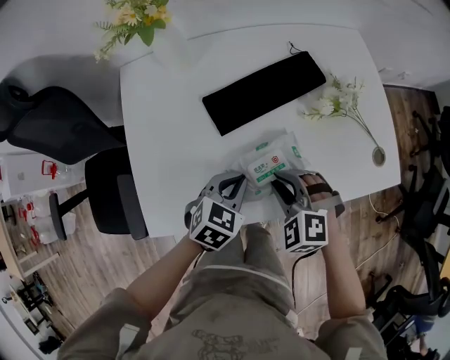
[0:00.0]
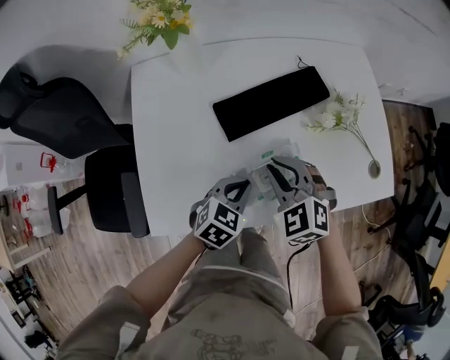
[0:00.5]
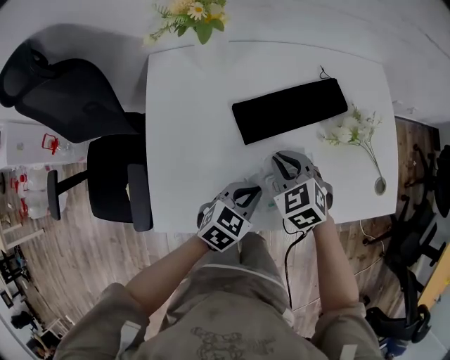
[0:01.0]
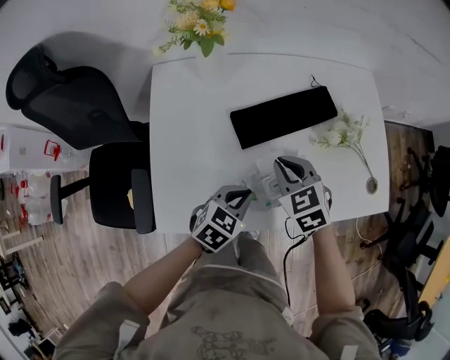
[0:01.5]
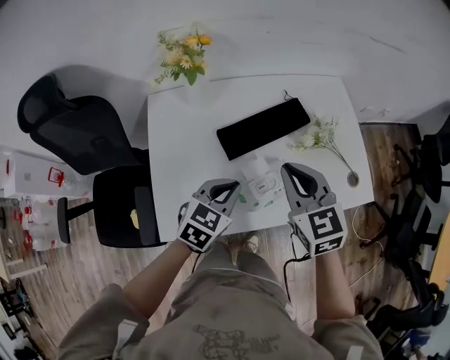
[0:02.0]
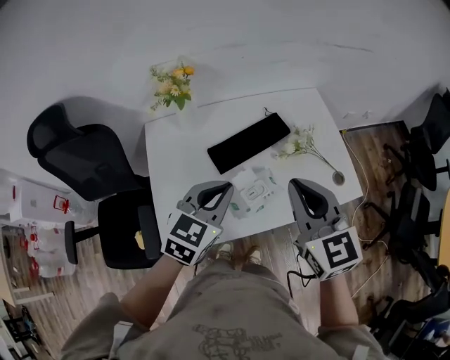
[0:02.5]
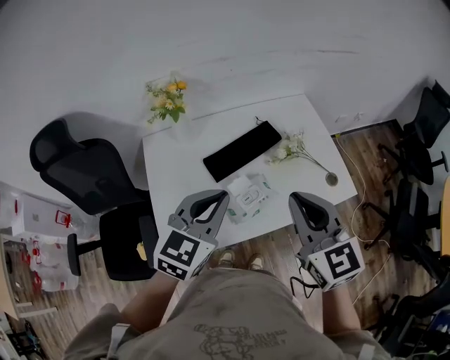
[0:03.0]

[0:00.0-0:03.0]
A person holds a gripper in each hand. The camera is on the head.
0:00.0 to 0:01.5: The right gripper goes about 10 cm forward, upward and to the left, and rotates approximately 30 degrees.
0:01.5 to 0:03.0: The right gripper heads upward and backward, covering some 30 cm, and points its fingers about 30 degrees further upward. Meanwhile the left gripper shifts approximately 30 cm upward, and turns by about 30 degrees.

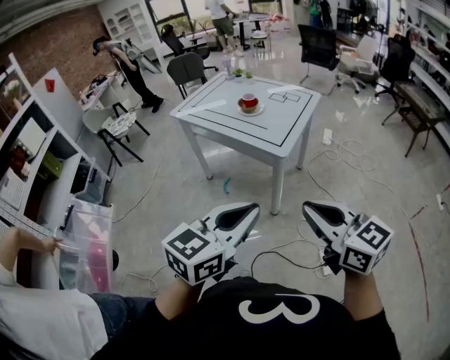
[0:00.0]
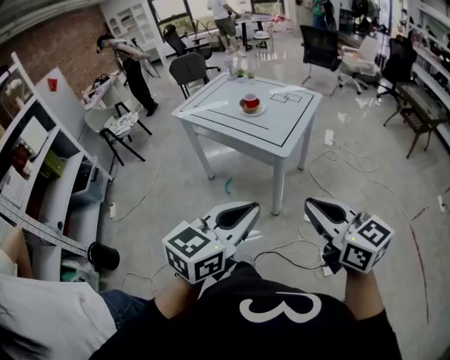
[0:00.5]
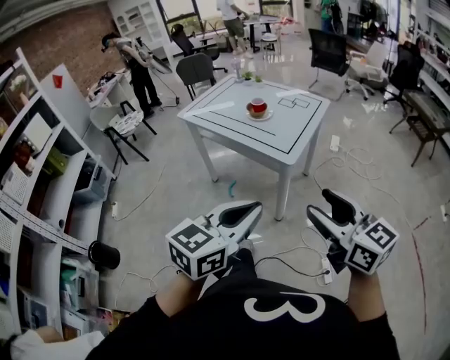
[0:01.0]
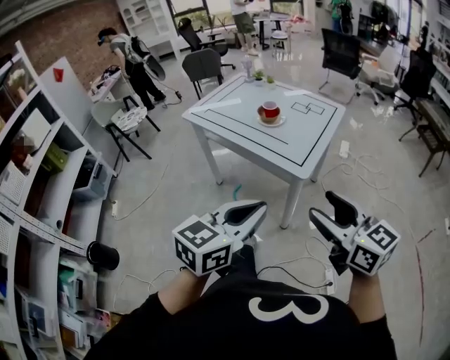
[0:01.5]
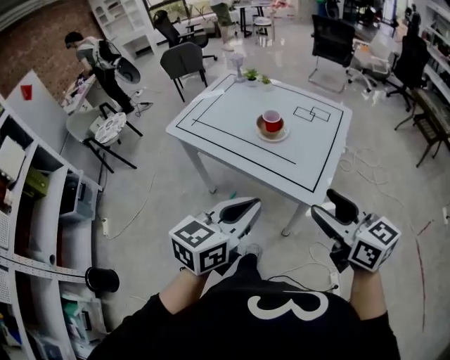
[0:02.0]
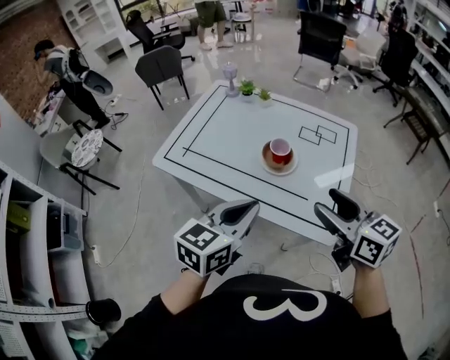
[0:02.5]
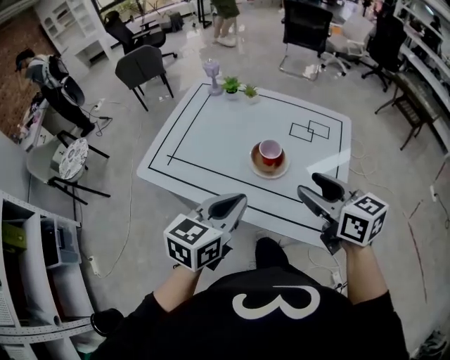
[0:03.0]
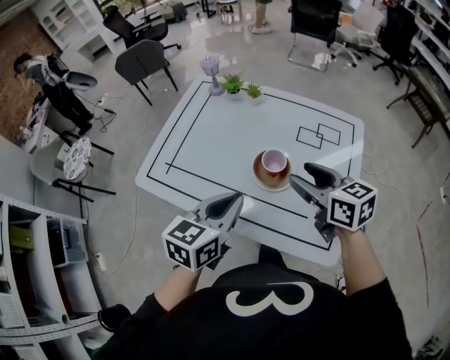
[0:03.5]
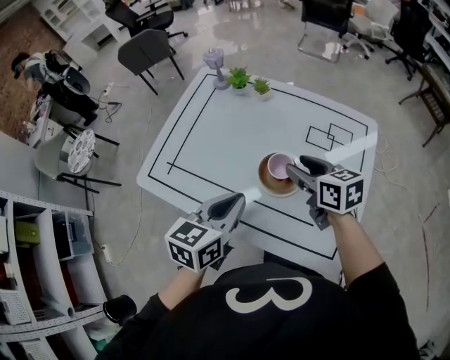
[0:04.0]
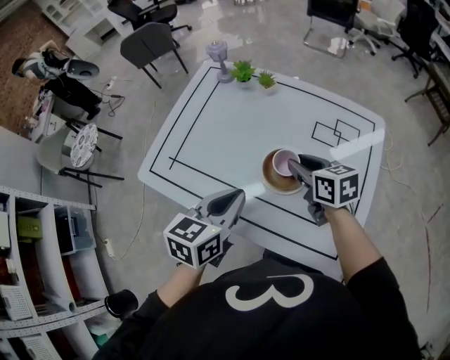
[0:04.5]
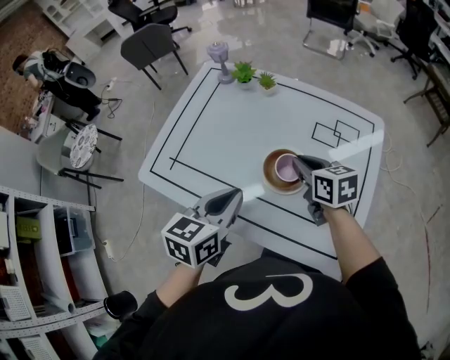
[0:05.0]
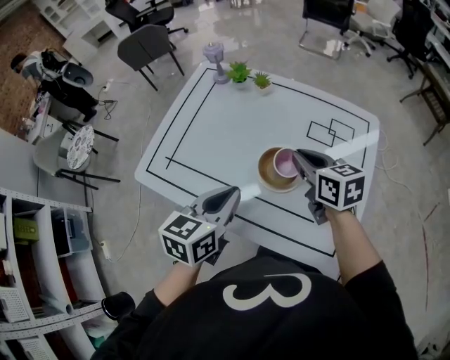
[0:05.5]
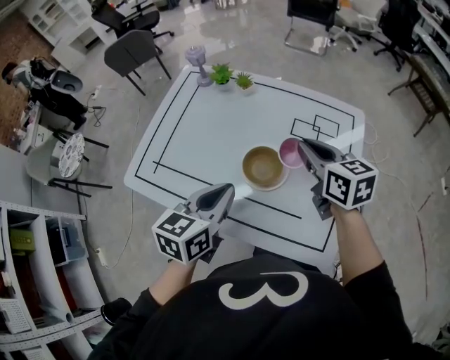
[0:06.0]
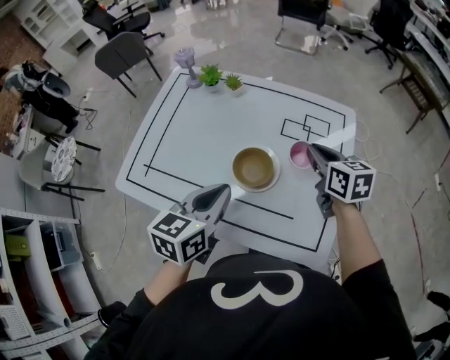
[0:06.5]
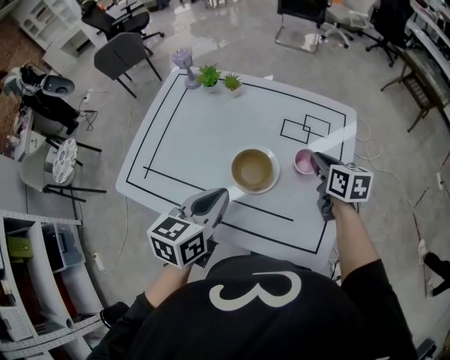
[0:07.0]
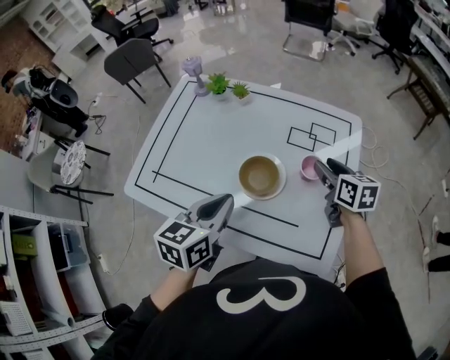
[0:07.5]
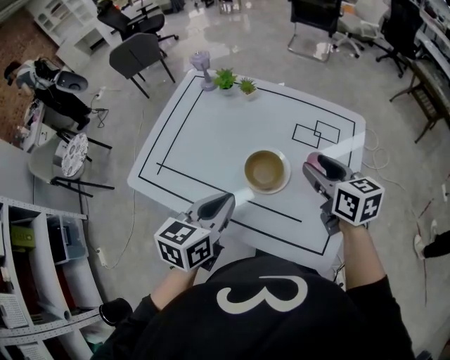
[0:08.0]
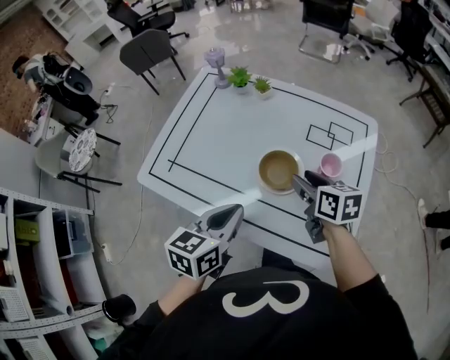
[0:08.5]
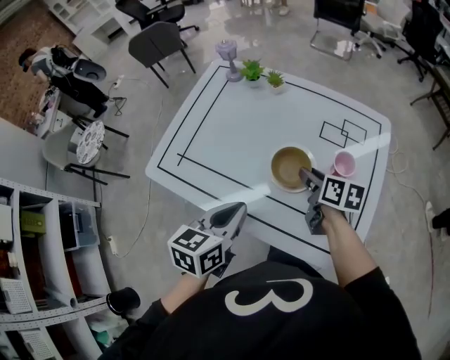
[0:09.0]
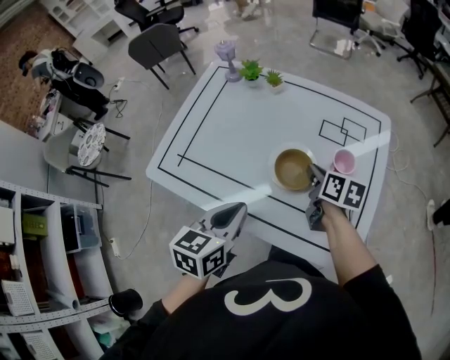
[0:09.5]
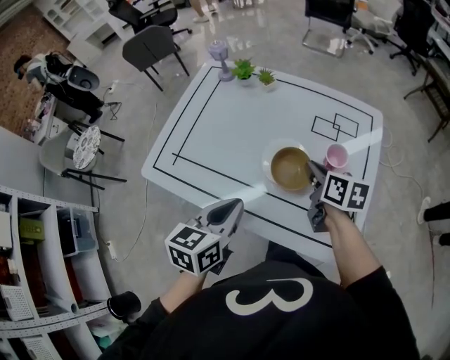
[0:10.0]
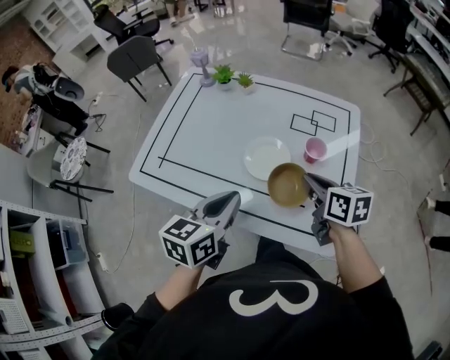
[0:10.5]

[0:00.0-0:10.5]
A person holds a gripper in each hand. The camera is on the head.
0:00.0 to 0:02.0: Both grippers travel together forward, approximately 30 cm. The right gripper opens its fingers.
0:02.0 to 0:04.0: The grippers both shift forward by roughly 35 cm. The right gripper changes its angle by some 20 degrees.
0:04.0 to 0:06.5: The right gripper travels to the right by approximately 10 cm, and closes.
0:06.5 to 0:08.5: The right gripper moves to the left and backward, approximately 10 cm, and opens up, while the left gripper moves roughly 5 cm.
0:08.5 to 0:10.5: The right gripper shifts approximately 5 cm backward, and closes its fingers.

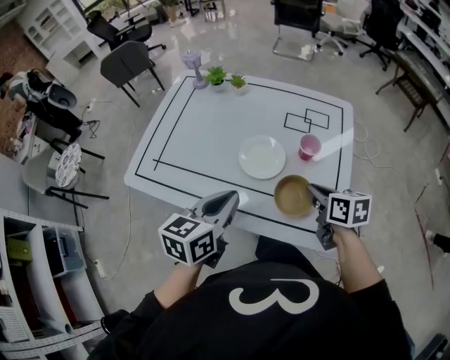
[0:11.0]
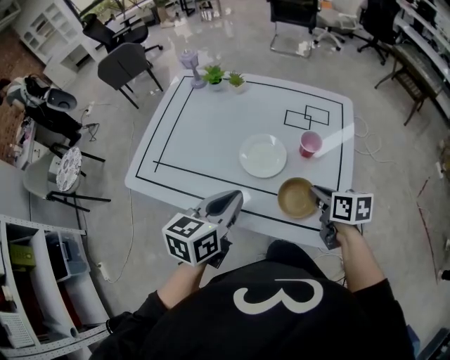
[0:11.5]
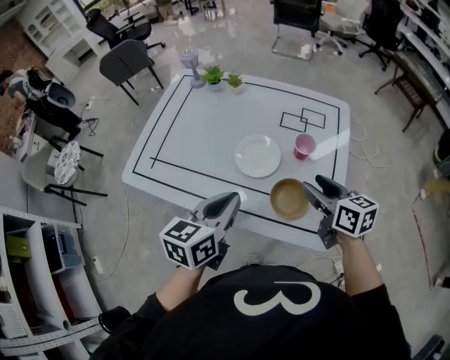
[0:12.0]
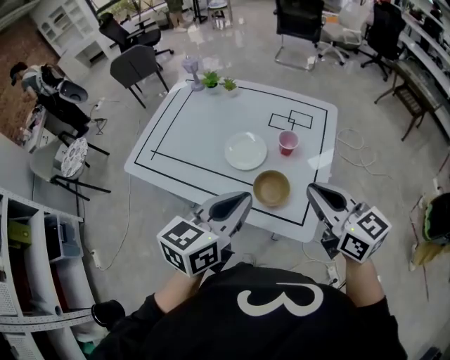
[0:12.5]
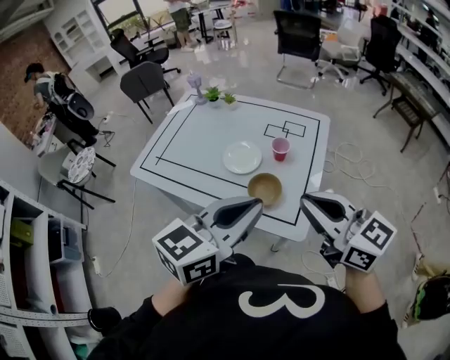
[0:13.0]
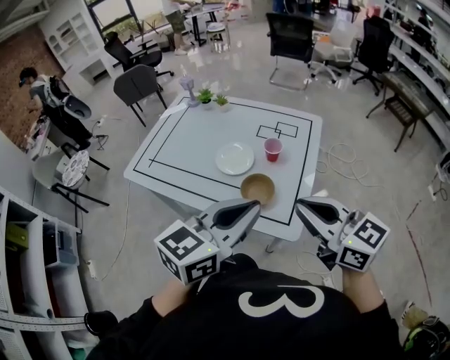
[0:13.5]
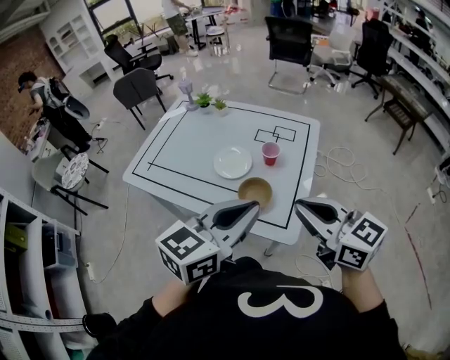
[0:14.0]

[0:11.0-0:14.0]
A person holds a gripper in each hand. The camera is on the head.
0:11.0 to 0:12.5: The right gripper travels upward and backward by some 20 cm, turns by approximately 40 degrees, and opens, then closes once more. The left gripper travels to the right, upward and backward by approximately 15 cm.
0:12.5 to 0:14.0: The left gripper moves to the right and backward, roughly 10 cm. The right gripper heads backward, covering about 5 cm.

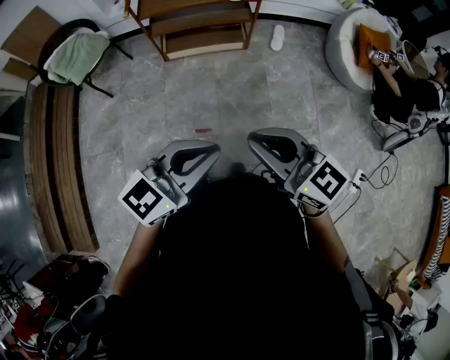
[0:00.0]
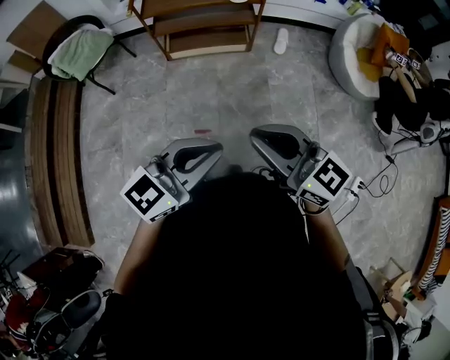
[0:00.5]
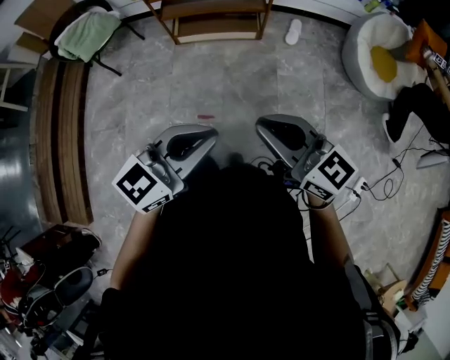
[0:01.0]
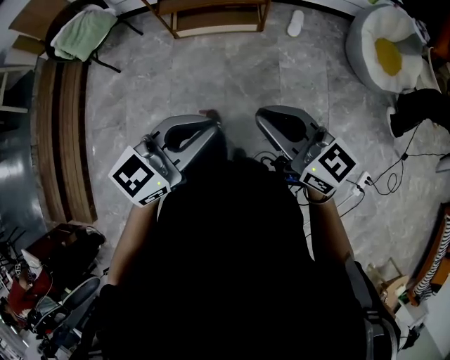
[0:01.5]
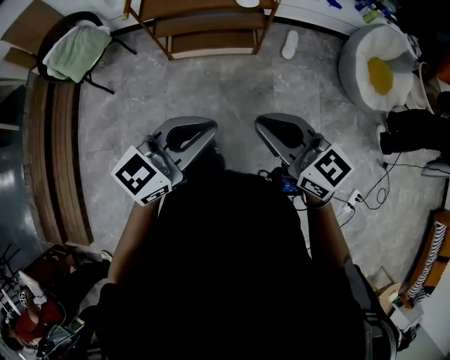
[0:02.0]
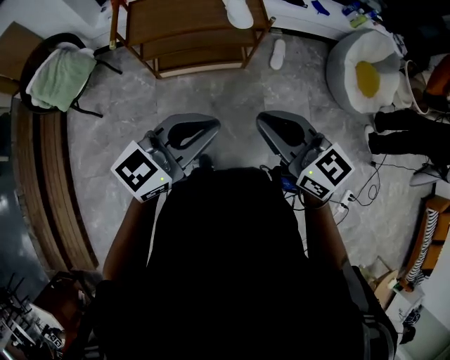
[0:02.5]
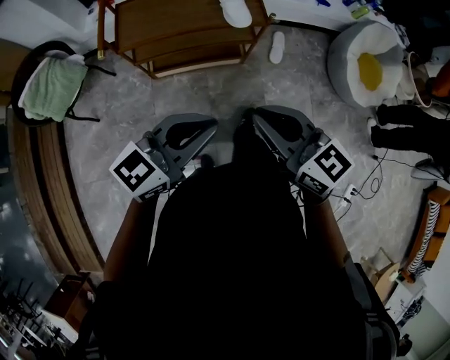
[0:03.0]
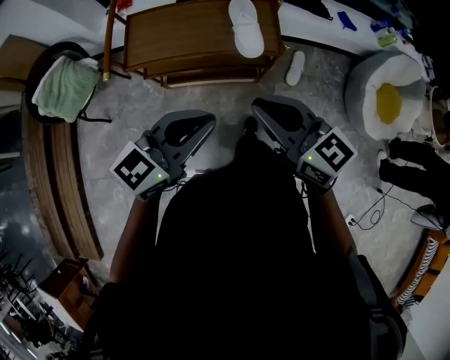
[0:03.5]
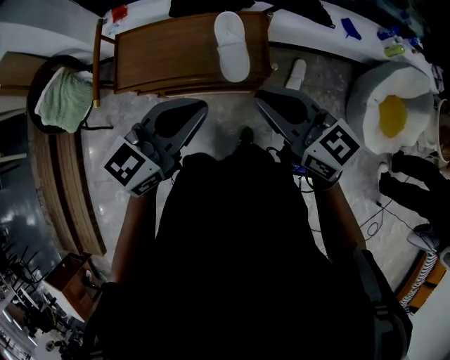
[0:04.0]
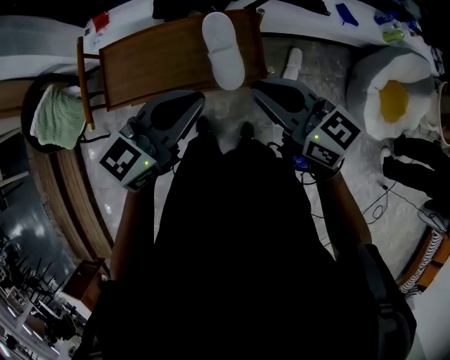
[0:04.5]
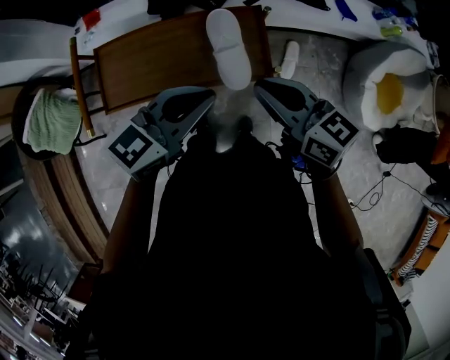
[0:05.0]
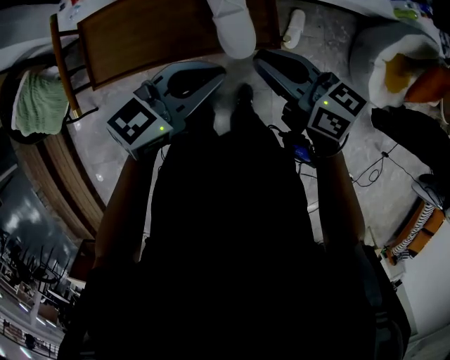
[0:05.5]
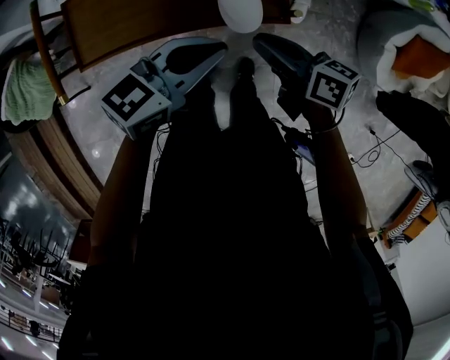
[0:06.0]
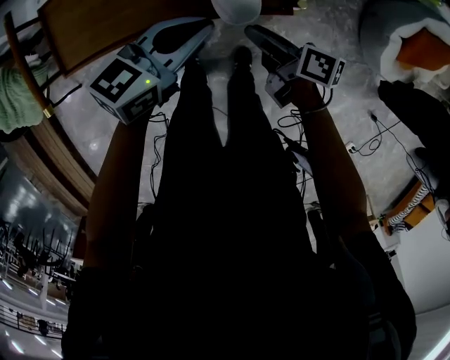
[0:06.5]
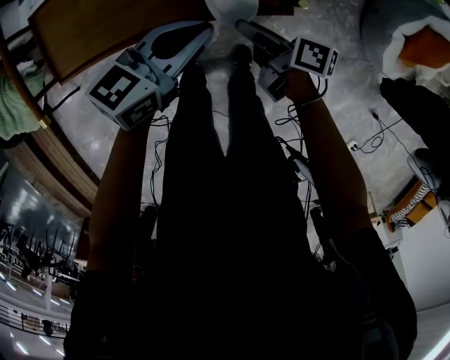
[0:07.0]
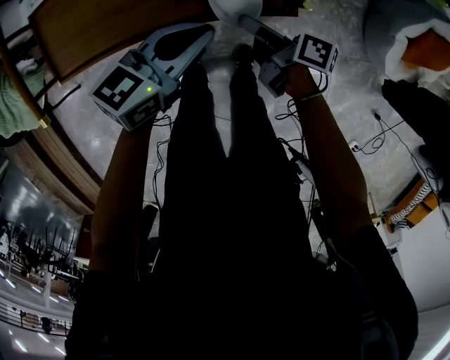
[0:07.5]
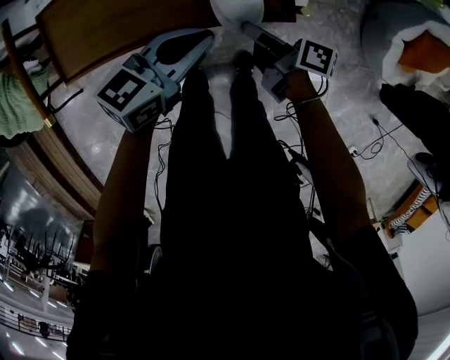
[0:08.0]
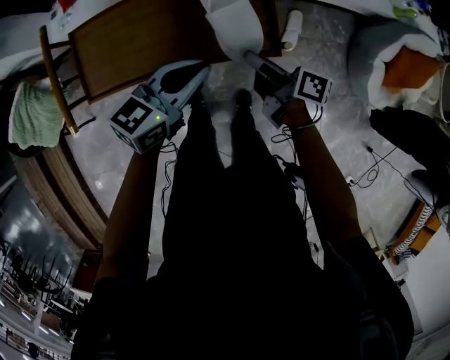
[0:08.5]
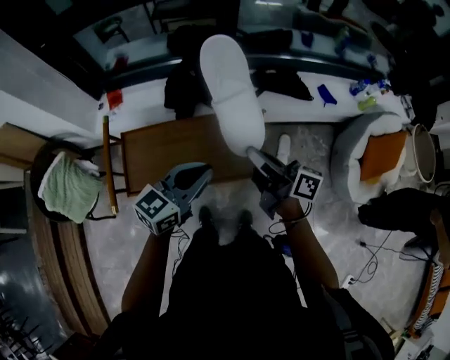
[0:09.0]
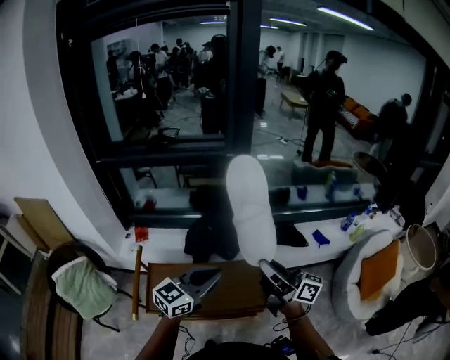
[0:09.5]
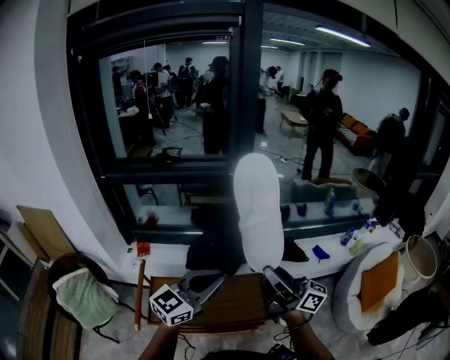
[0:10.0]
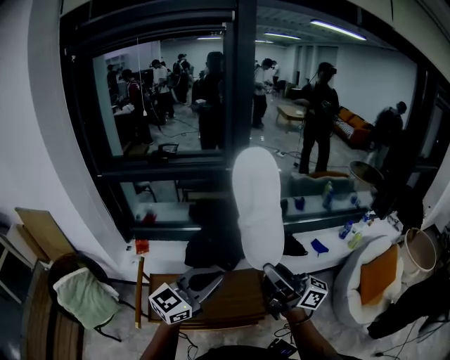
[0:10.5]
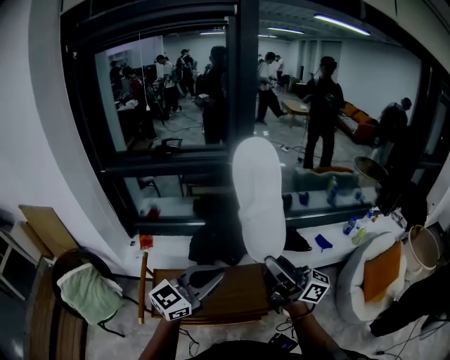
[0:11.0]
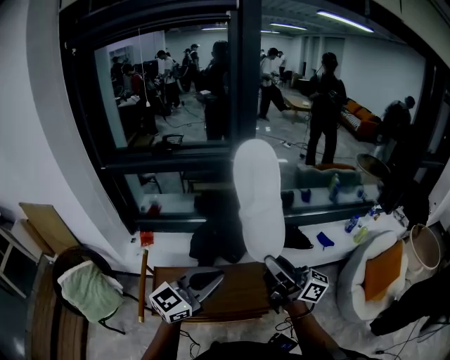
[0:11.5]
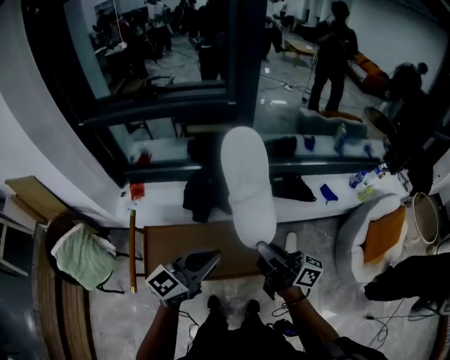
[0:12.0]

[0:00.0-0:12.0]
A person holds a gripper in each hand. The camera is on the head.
0:00.0 to 0:02.0: Both grippers move forward, some 15 cm.
0:02.0 to 0:04.0: The two grippers travel together, forward, some 50 cm.
0:04.0 to 0:06.0: The grippers both shift downward and forward by some 20 cm. The right gripper rotates around the line of its fingers by roughly 40 degrees, clockwise from behind, while the left gripper changes its angle by some 20 degrees.
0:06.0 to 0:08.0: The grippers both shift downward by about 10 cm. The right gripper swivels approximately 30 degrees, and opens, then closes once more.
0:08.0 to 0:10.0: The two grippers go roughly 50 cm upward. The right gripper tips its fingers upward by about 50 degrees; the left gripper turns by roughly 40 degrees.
0:10.0 to 0:12.0: Both grippers travel together downward, about 10 cm.
